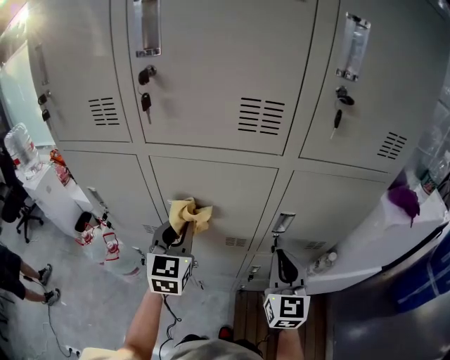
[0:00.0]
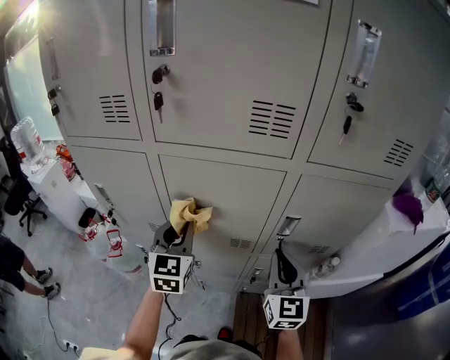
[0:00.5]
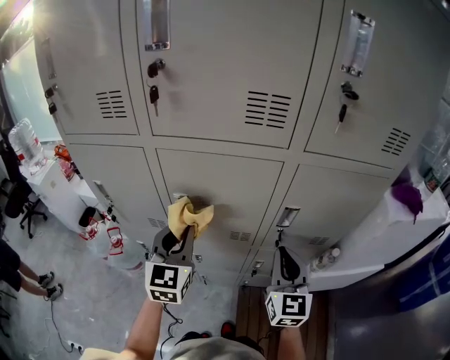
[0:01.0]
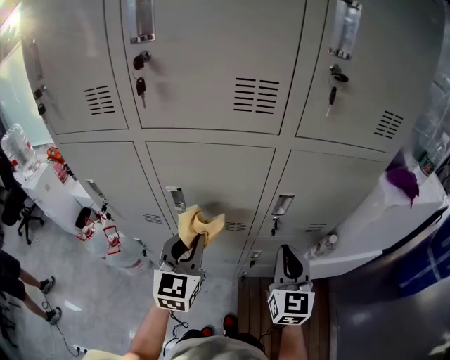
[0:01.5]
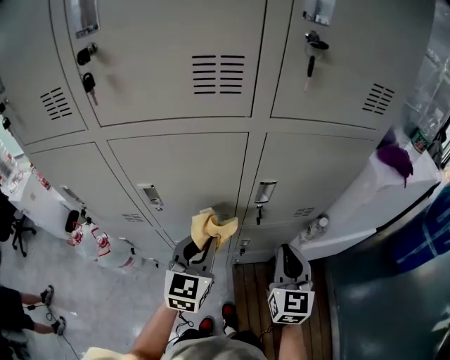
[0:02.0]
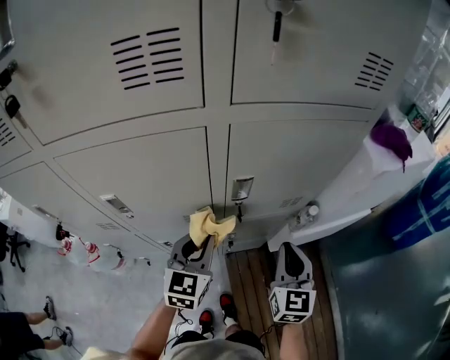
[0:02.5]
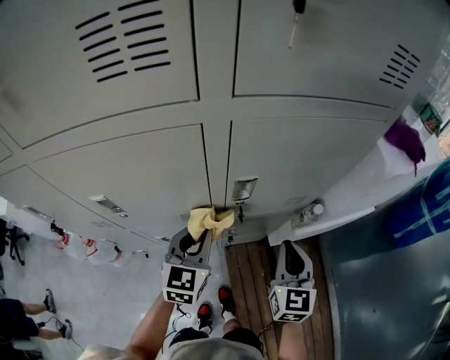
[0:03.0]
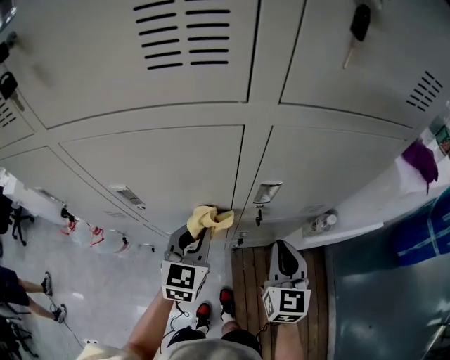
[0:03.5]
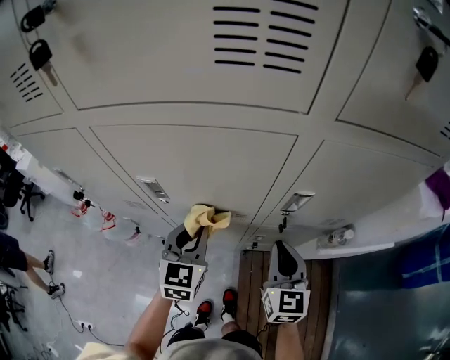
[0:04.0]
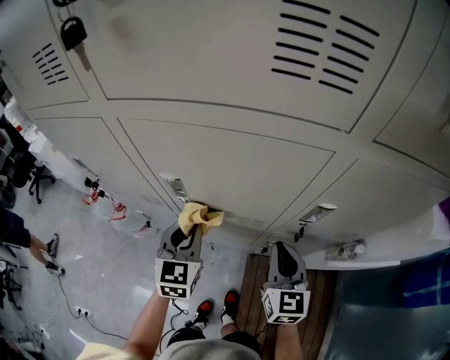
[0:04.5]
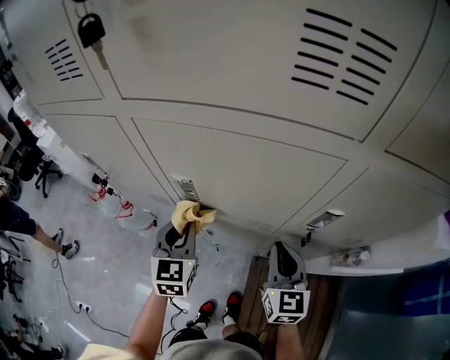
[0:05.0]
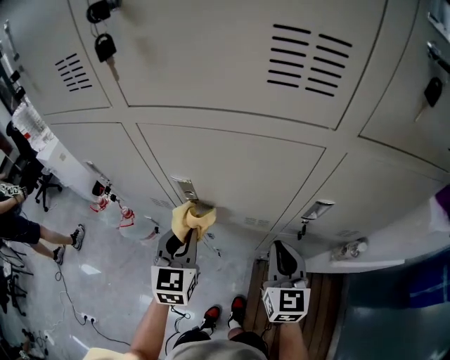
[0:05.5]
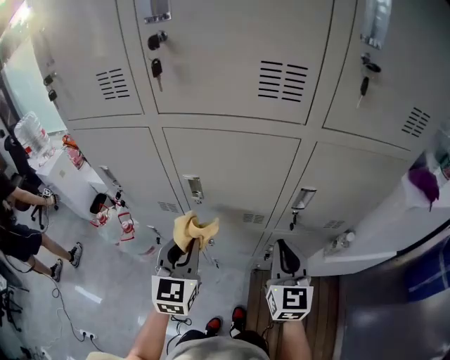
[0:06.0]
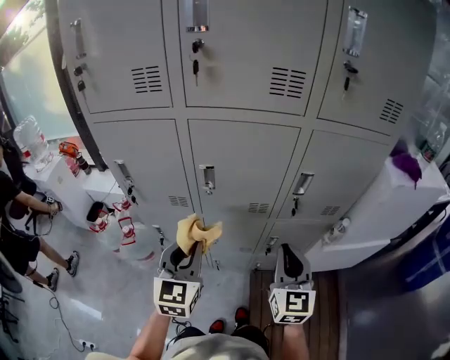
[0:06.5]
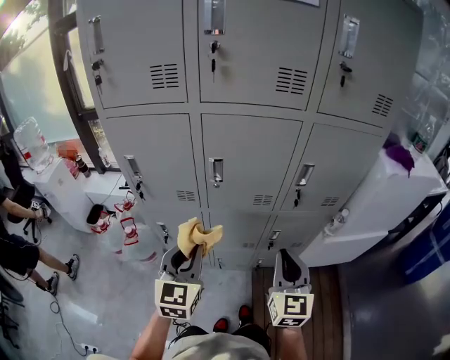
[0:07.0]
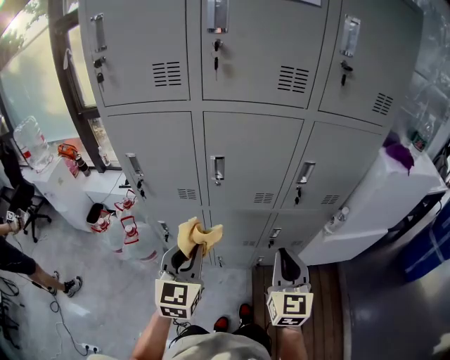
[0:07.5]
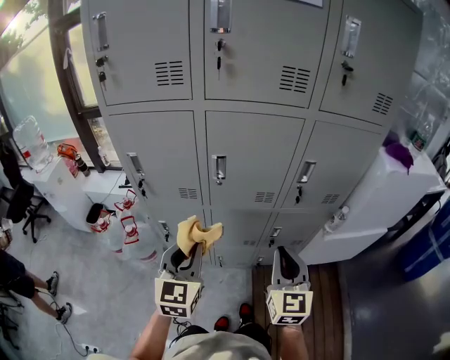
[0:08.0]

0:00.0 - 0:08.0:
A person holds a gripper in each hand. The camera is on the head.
0:00.0 - 0:02.0: The left gripper moves to the right, downward and backward, approximately 15 cm; the right gripper moves to the right, about 5 cm.
0:02.0 - 0:04.0: The two grippers go about 10 cm to the left and downward.
0:04.0 - 0:06.0: The right gripper goes some 10 cm upward and to the left, while the left gripper is displaced upward, backward and to the left by roughly 15 cm.
0:06.0 - 0:08.0: Both grippers travel together backward and to the left, about 15 cm.

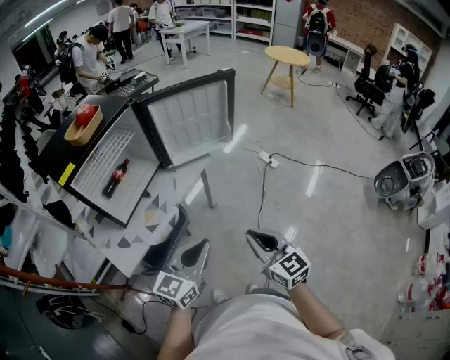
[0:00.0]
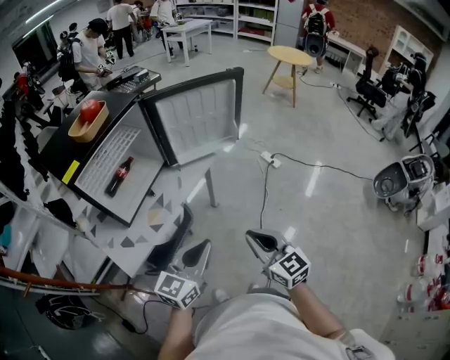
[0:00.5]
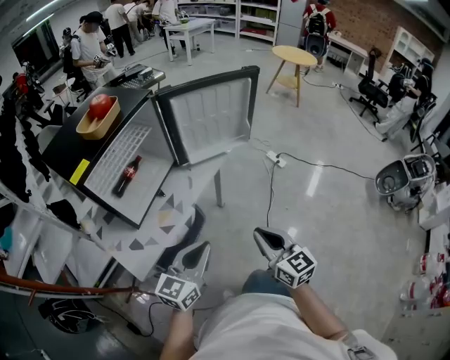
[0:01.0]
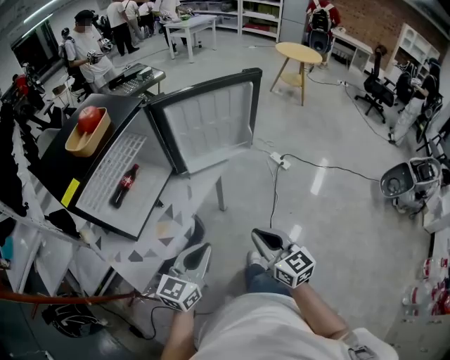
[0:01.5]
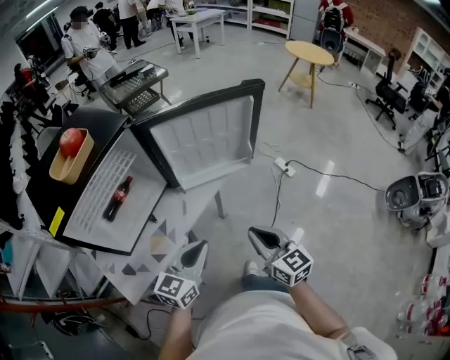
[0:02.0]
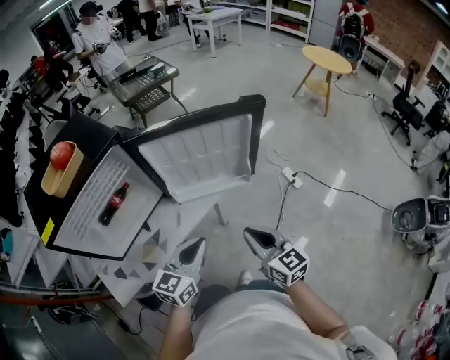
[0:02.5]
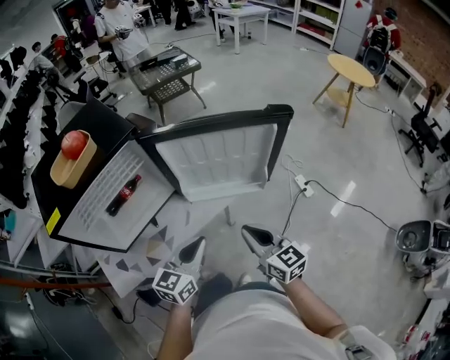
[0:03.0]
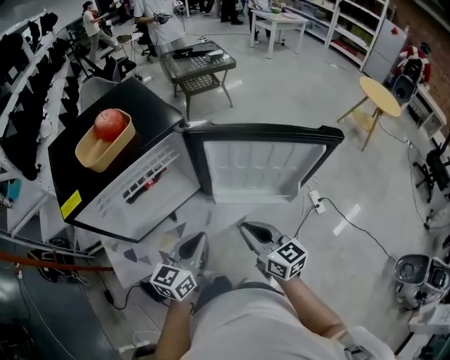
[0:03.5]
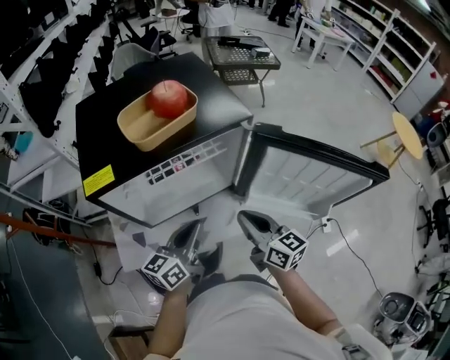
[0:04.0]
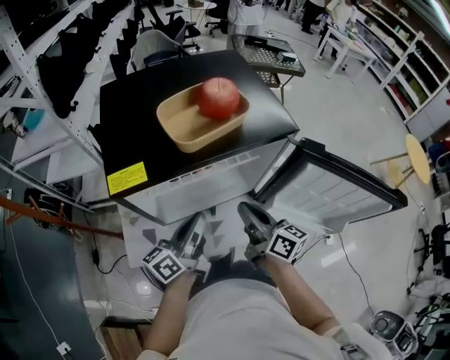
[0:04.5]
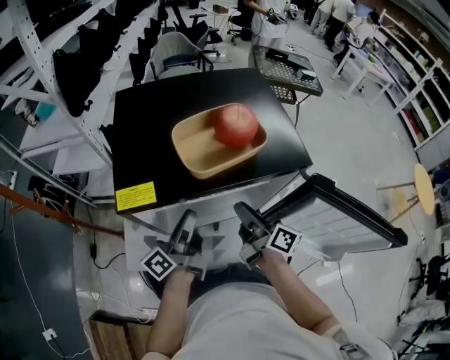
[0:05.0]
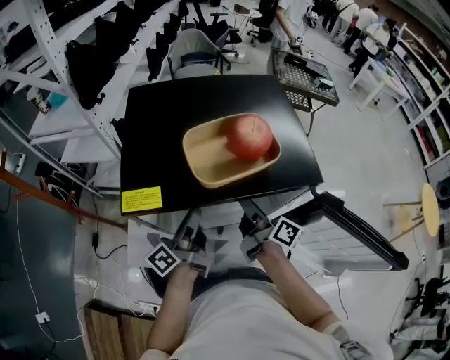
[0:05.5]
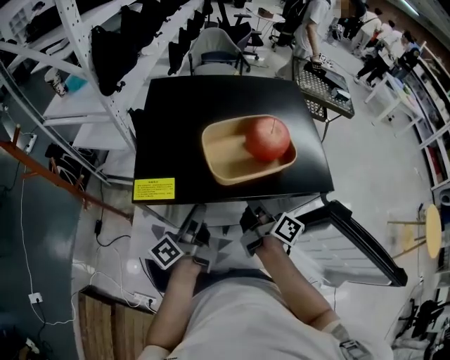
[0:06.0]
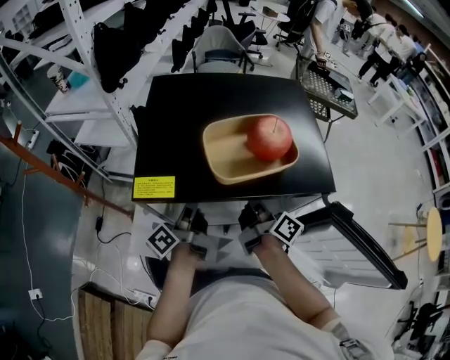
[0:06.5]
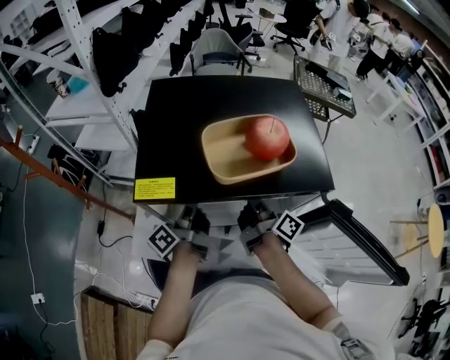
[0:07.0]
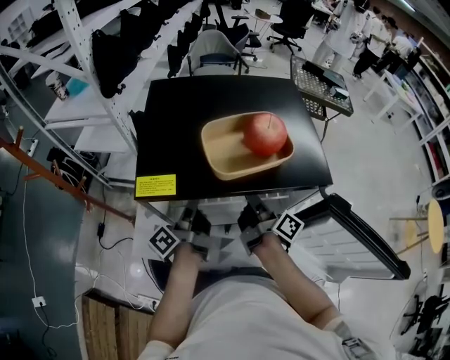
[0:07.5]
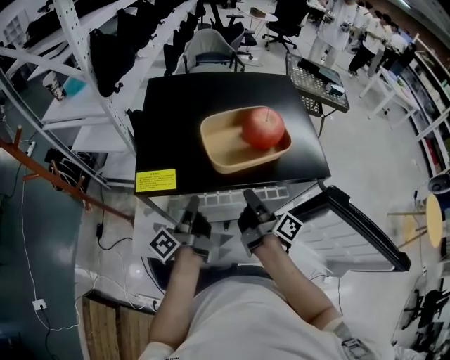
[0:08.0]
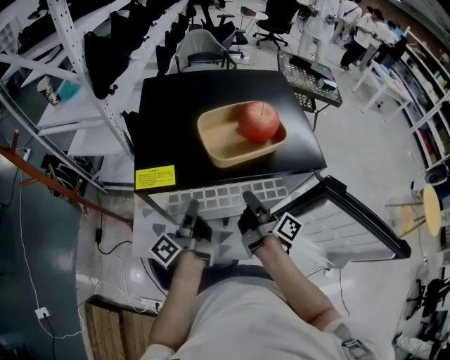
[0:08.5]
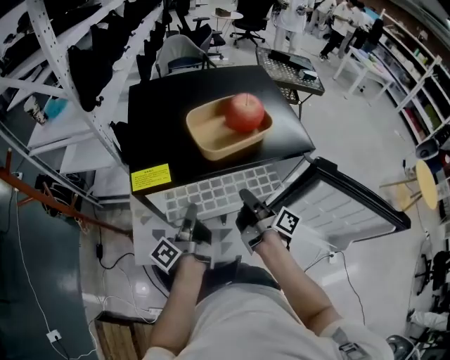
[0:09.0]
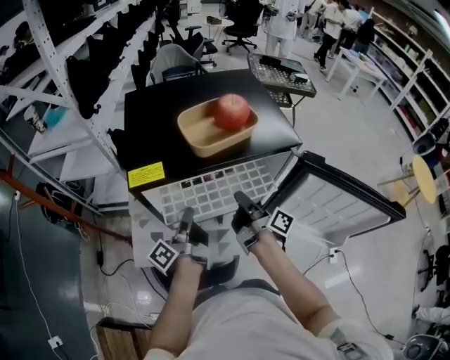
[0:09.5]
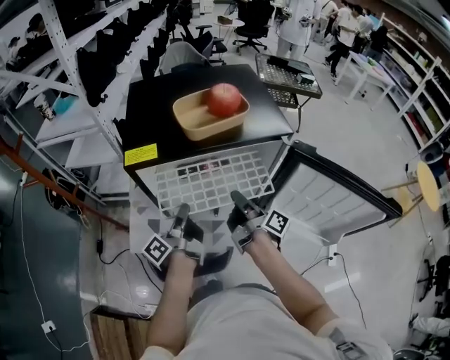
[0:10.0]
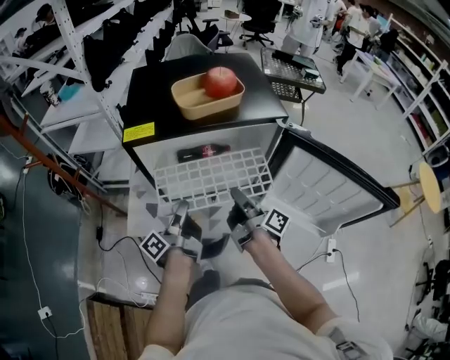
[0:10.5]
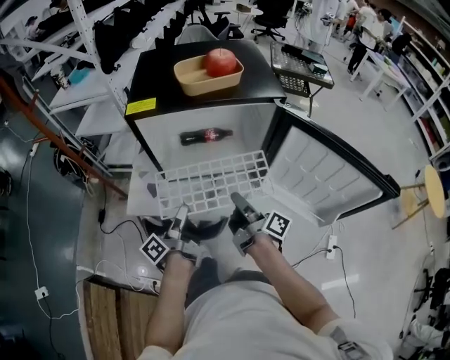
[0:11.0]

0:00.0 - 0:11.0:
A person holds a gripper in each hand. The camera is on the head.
0:00.0 - 0:02.0: Both grippers move forward, roughly 20 cm.
0:02.0 - 0:03.5: Both grippers travel together forward and to the left, approximately 15 cm. The left gripper rotates roughly 20 degrees. Meanwhile the right gripper rotates roughly 20 degrees.
0:03.5 - 0:05.5: The right gripper ends up some 35 cm from where it was, twists about 50 degrees clockwise, seen from behind, and opens; the left gripper ends up approximately 30 cm from where it was, turns by roughly 70 degrees, and opens.
0:05.5 - 0:07.5: The left gripper closes; the right gripper closes.
0:07.5 - 0:09.0: Both grippers travel together backward, approximately 5 cm.
0:09.0 - 0:11.0: The grippers both shift backward by roughly 20 cm.

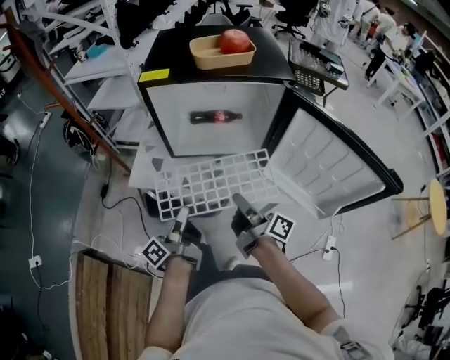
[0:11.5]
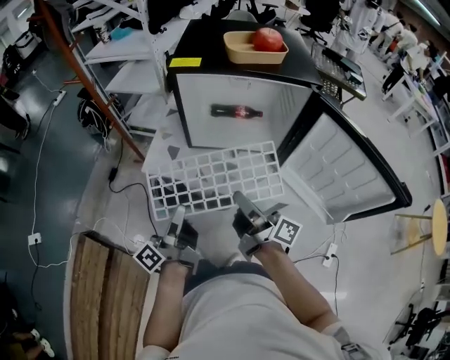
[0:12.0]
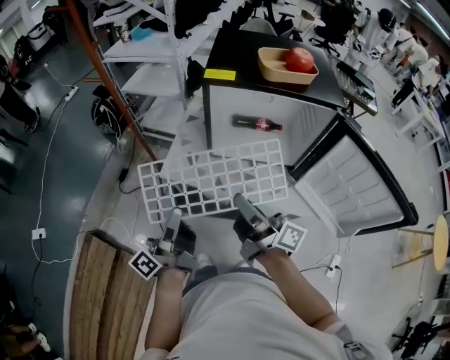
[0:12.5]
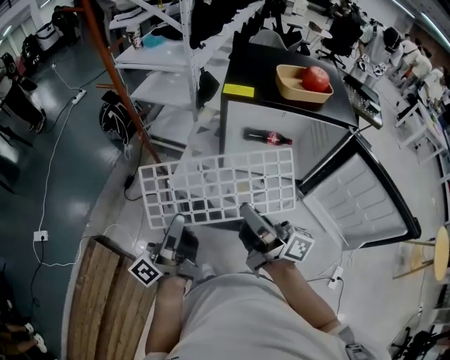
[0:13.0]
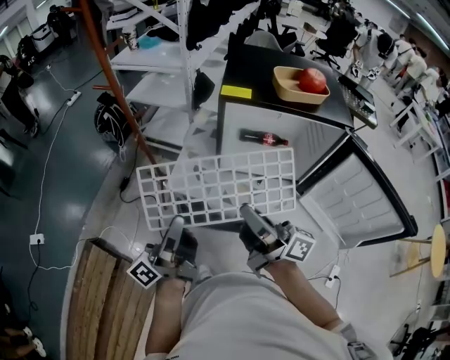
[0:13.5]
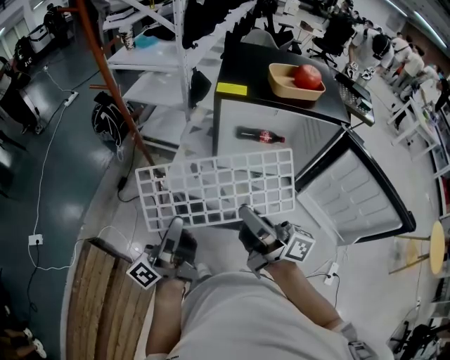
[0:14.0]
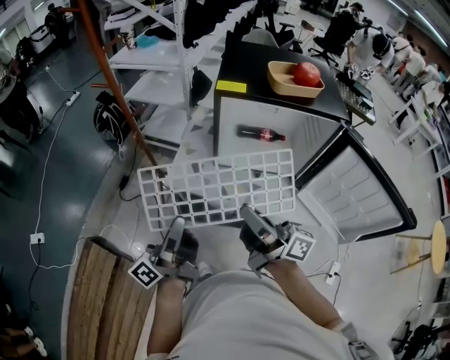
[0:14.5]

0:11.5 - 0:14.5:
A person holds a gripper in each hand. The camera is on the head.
0:11.5 - 0:13.0: The two grippers go roughly 20 cm to the left and upward. The right gripper swivels approximately 30 degrees, while the left gripper swivels roughly 20 degrees.
0:13.0 - 0:14.5: The grippers move only a little.

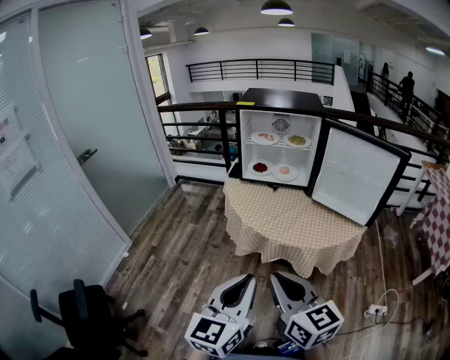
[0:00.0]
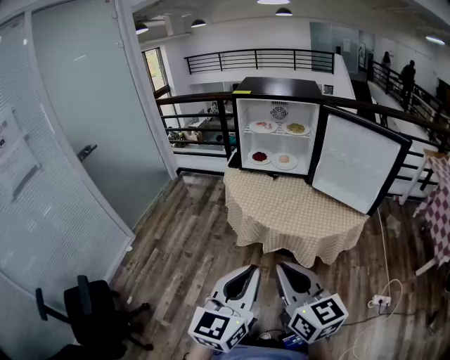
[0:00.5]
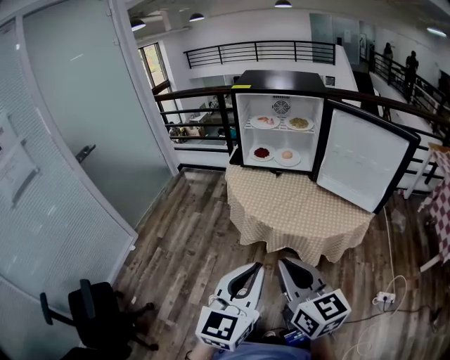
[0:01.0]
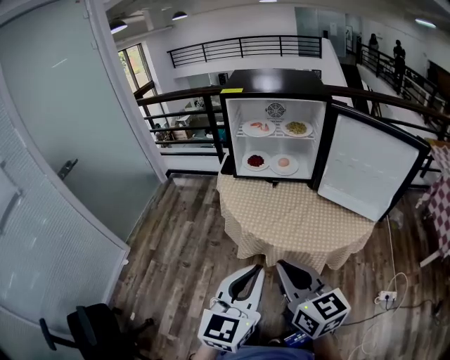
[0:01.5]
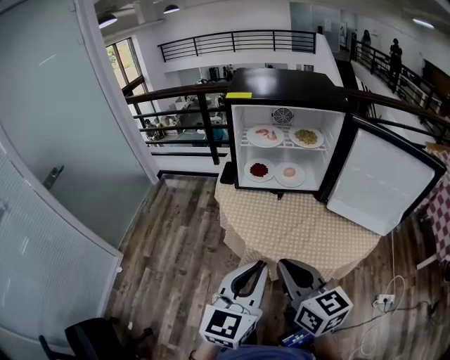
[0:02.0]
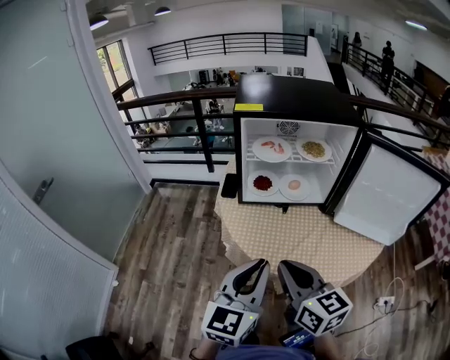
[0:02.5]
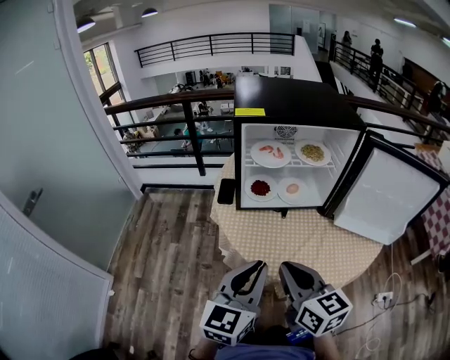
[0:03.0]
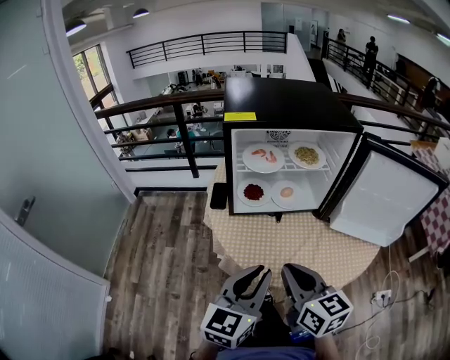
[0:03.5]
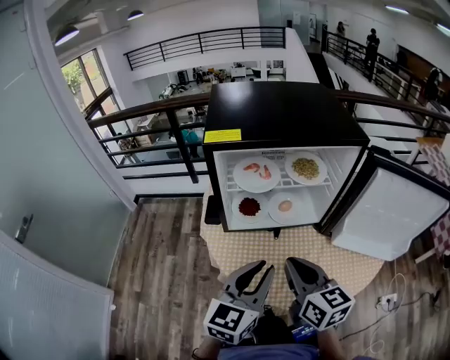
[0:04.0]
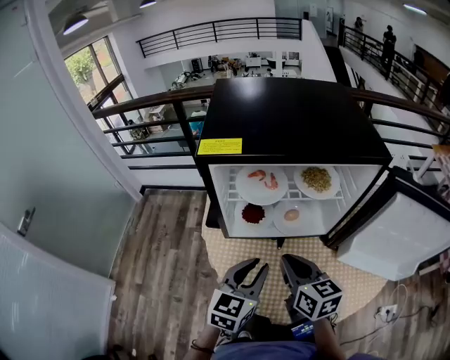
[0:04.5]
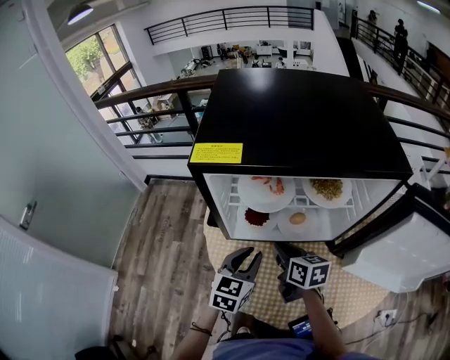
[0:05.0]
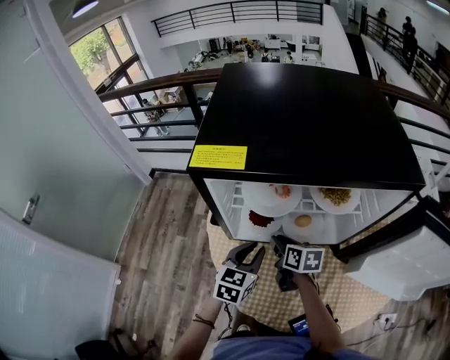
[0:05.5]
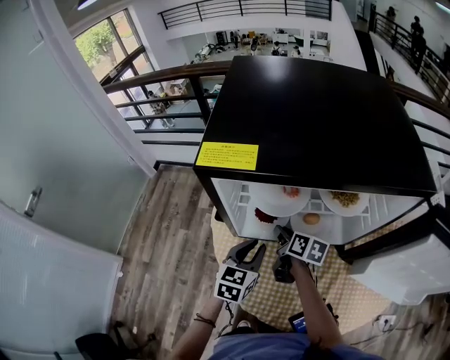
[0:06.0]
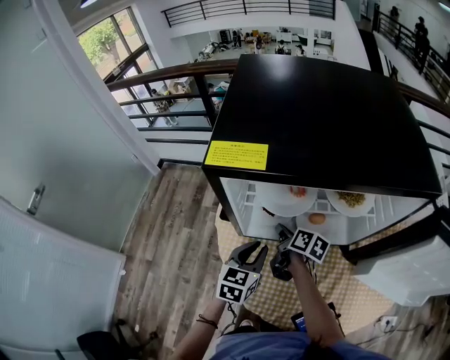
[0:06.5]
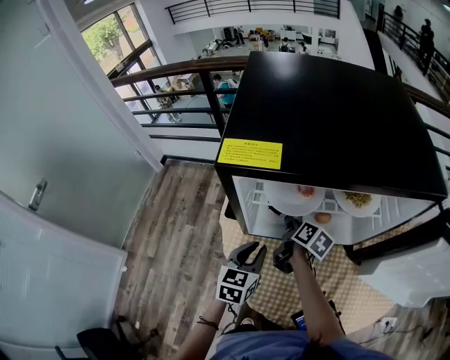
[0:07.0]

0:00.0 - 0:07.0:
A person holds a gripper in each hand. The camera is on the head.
0:00.0 - 0:02.0: The two grippers go approximately 25 cm forward.
0:02.0 - 0:03.5: The two grippers go roughly 10 cm forward.
0:03.5 - 0:05.0: The grippers both shift forward and downward by about 30 cm. The right gripper rotates some 20 degrees.
0:05.0 - 0:07.0: The left gripper changes place by roughly 5 cm, while the right gripper is displaced forward and downward by approximately 10 cm, changes its angle by some 30 degrees, and opens its fingers.
